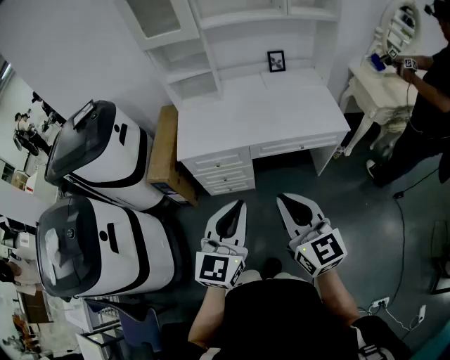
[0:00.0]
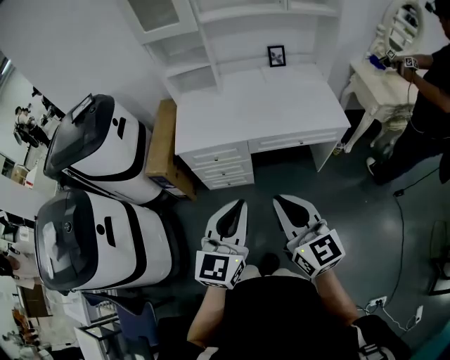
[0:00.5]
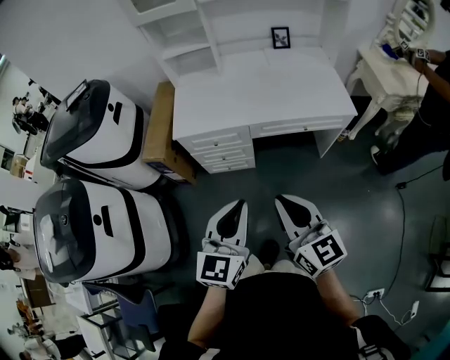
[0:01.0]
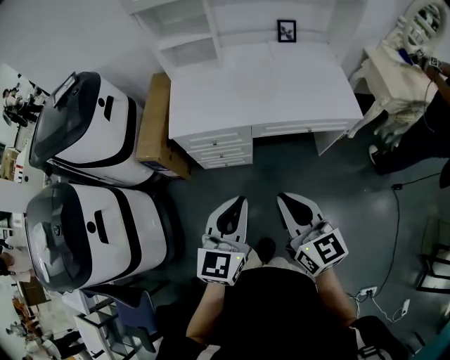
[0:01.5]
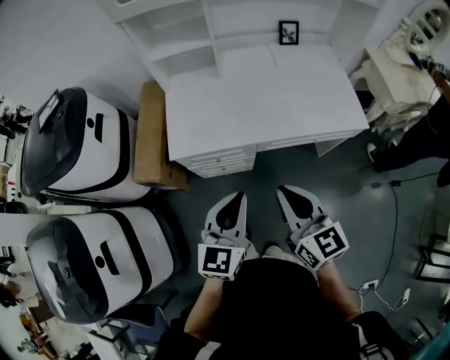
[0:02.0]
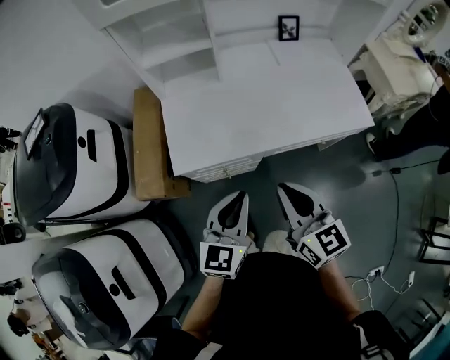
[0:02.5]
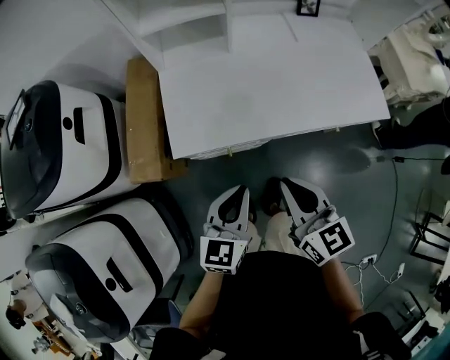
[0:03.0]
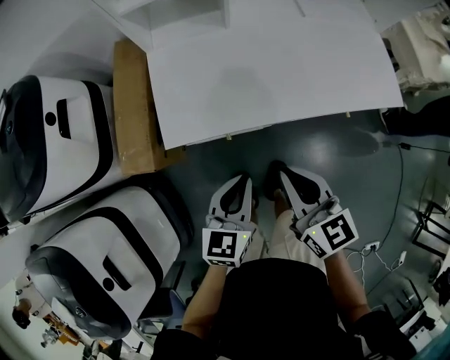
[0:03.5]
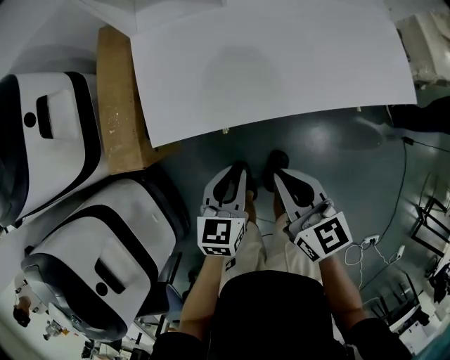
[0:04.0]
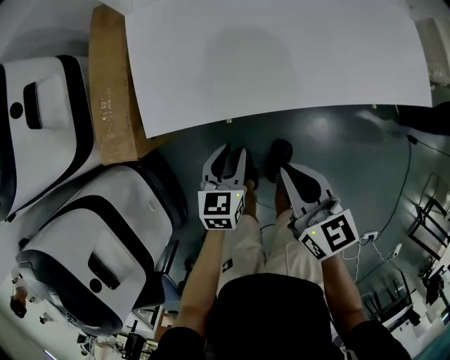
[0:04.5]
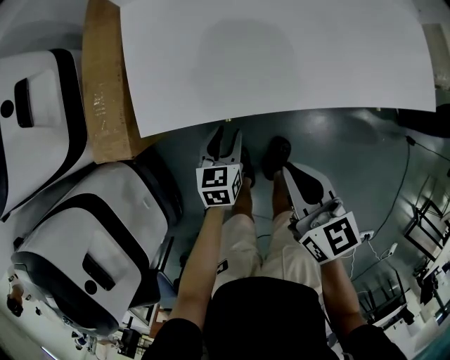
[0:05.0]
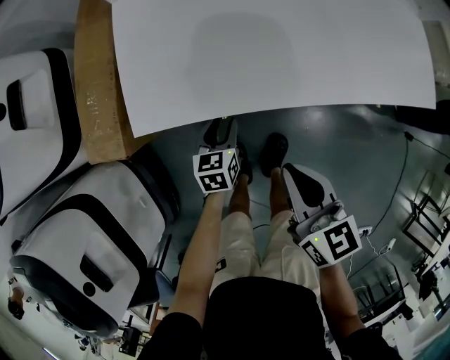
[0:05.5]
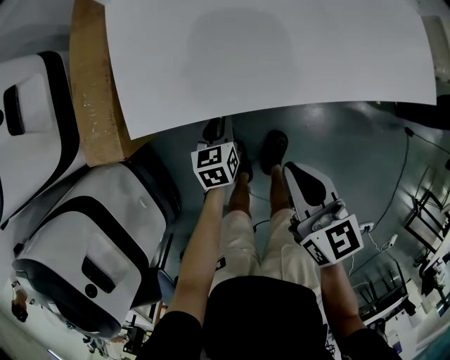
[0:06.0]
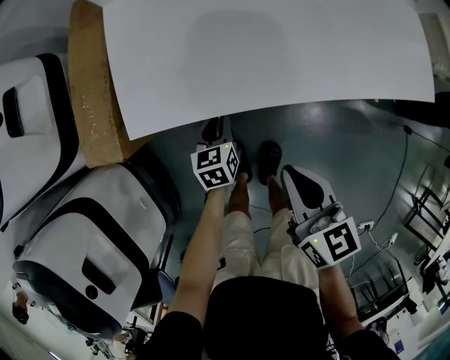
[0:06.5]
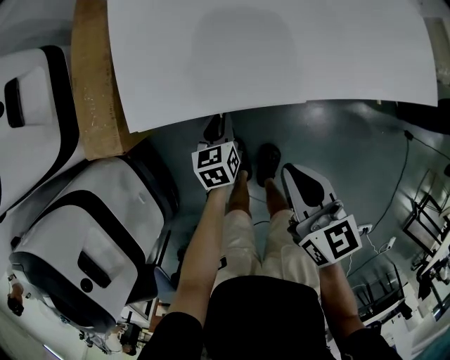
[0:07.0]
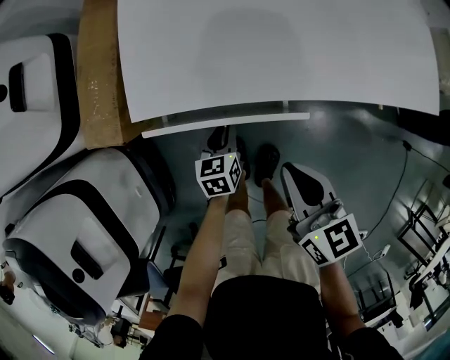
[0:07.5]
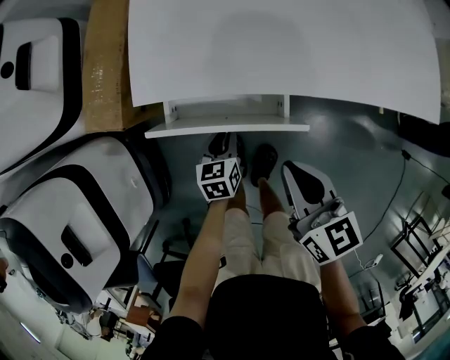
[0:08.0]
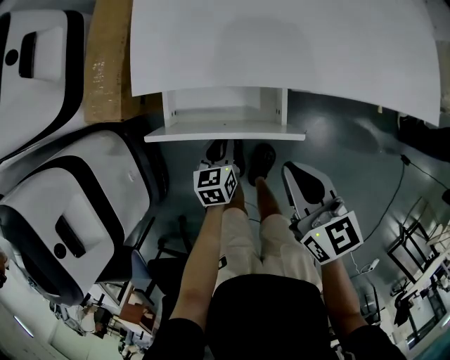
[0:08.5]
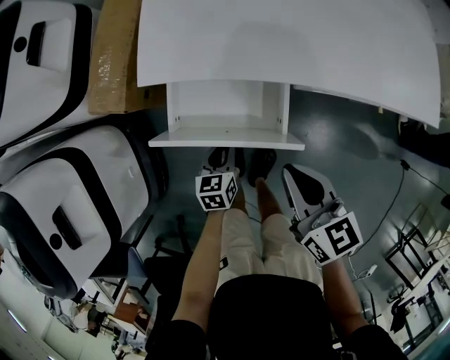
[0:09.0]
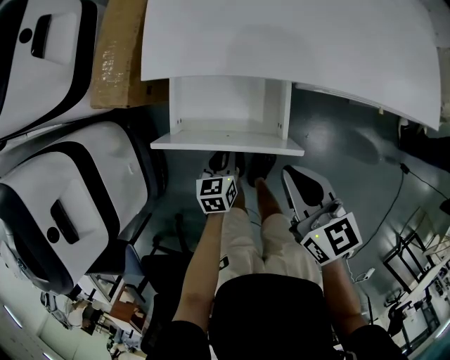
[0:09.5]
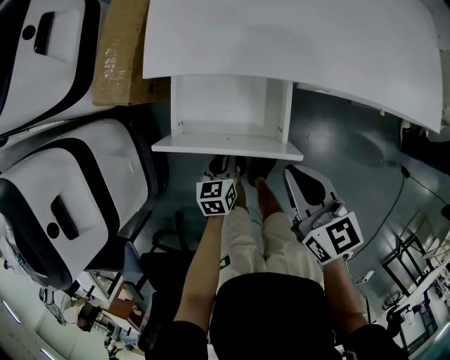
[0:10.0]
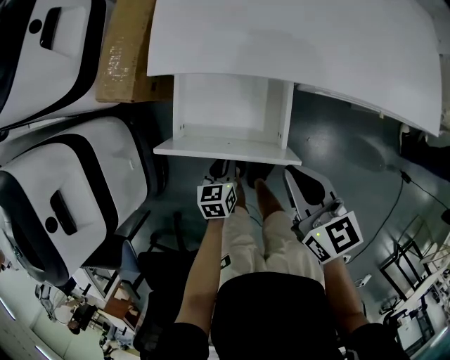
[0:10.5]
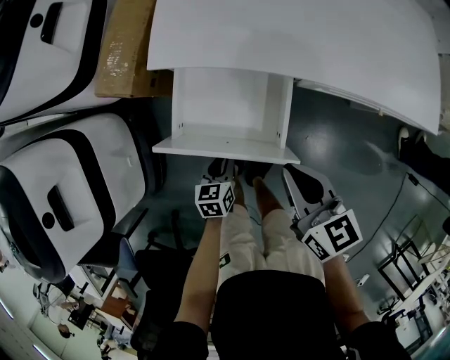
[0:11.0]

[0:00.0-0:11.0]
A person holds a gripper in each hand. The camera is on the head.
0.0 to 2.0 s: The right gripper shifts about 20 cm forward. The left gripper goes roughly 20 cm forward and downward.
2.0 to 3.5 s: Both grippers move downward, forward and to the left, some 20 cm.
3.5 to 5.5 s: The right gripper shifts some 15 cm downward. Meanwhile the left gripper heads downward, covering about 30 cm, turns by some 20 degrees, and opens.
5.5 to 7.5 s: The left gripper closes.
7.5 to 9.0 s: The right gripper travels backward by some 5 cm, while the left gripper moves backward, roughly 10 cm.
9.0 to 11.0 s: The left gripper travels backward by roughly 5 cm.

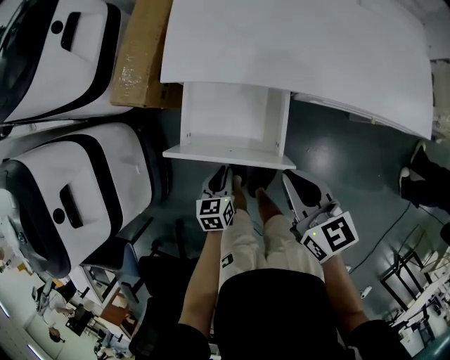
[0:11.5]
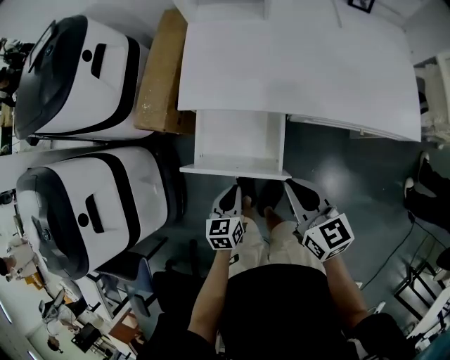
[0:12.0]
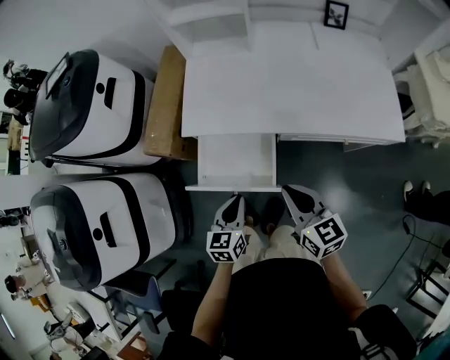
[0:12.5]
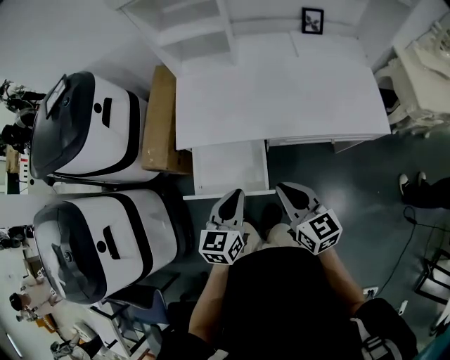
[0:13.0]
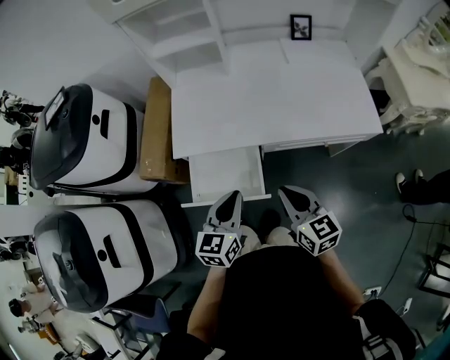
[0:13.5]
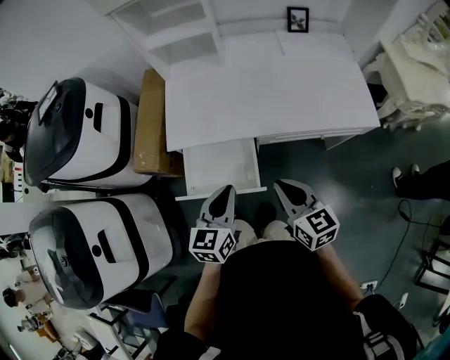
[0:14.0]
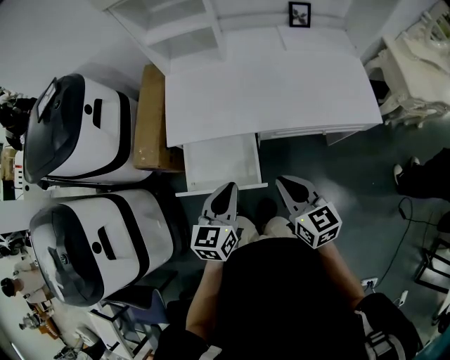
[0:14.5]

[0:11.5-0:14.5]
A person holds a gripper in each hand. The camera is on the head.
11.5 to 13.0 s: The right gripper travels upward and to the right by some 15 cm, while the left gripper goes about 30 cm upward, and turns by approximately 30 degrees.
13.0 to 14.5 s: There are only small adjustments of the grippers.

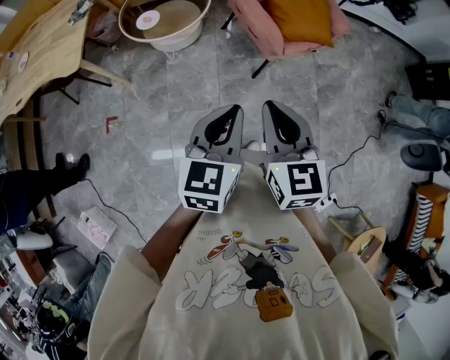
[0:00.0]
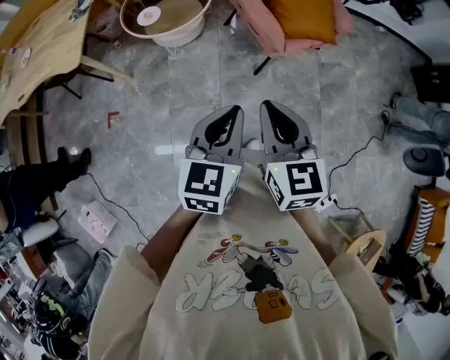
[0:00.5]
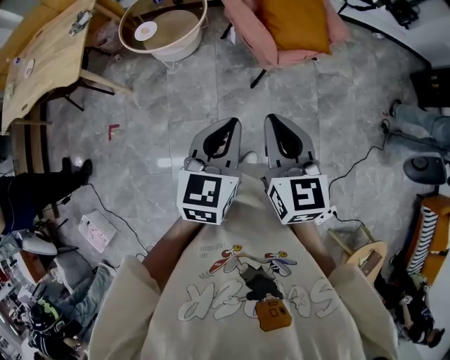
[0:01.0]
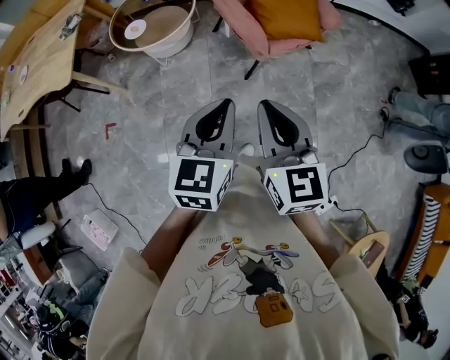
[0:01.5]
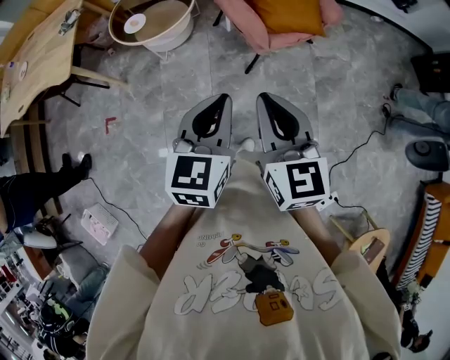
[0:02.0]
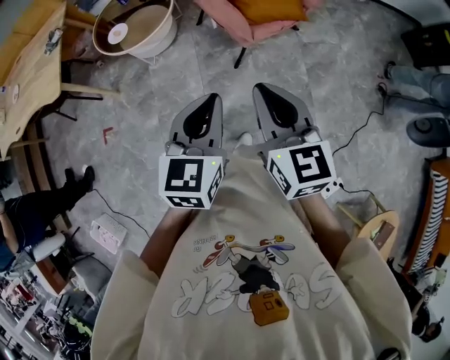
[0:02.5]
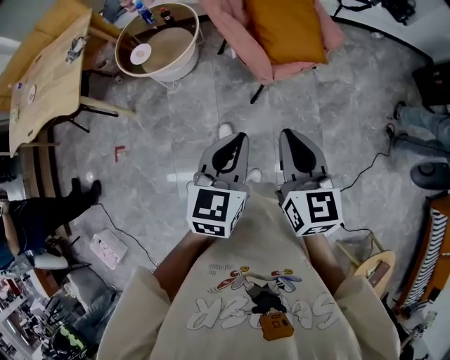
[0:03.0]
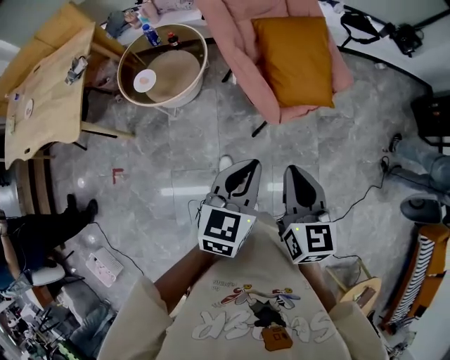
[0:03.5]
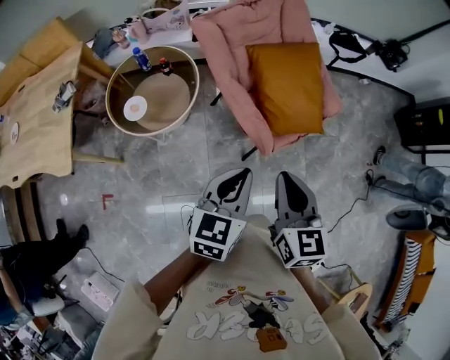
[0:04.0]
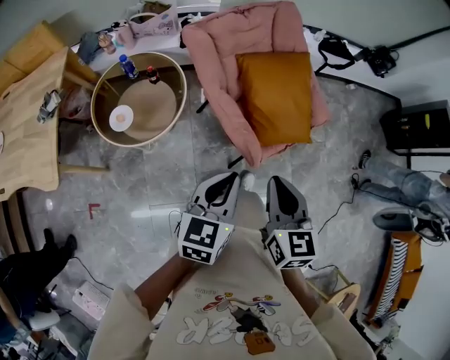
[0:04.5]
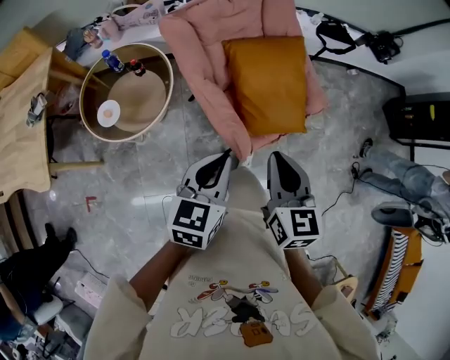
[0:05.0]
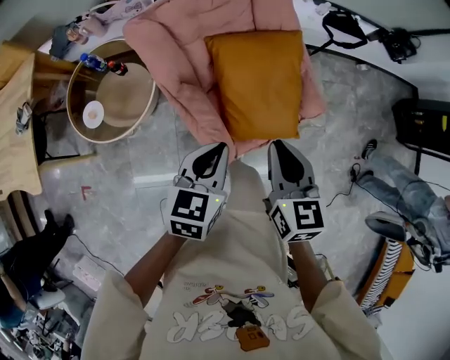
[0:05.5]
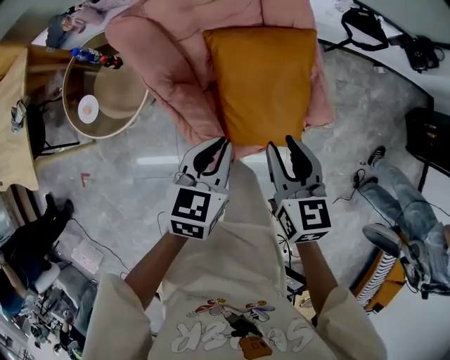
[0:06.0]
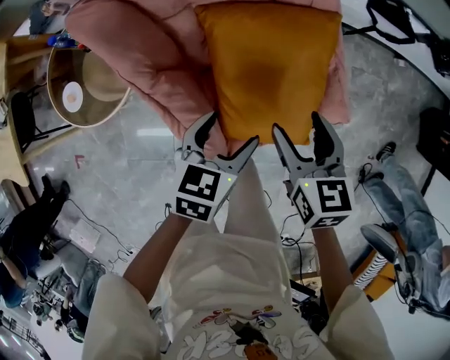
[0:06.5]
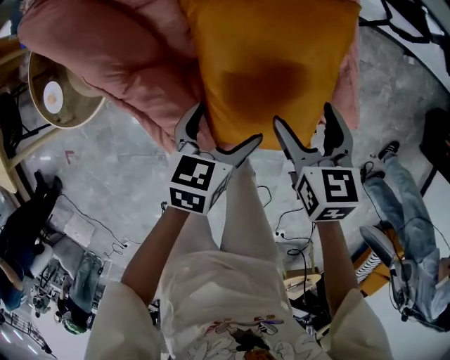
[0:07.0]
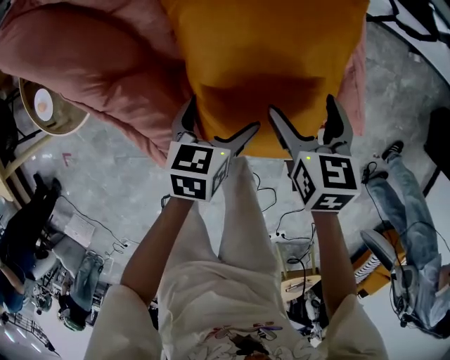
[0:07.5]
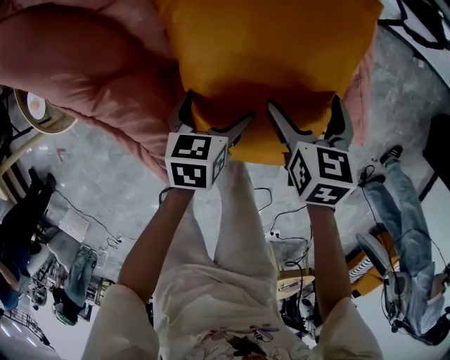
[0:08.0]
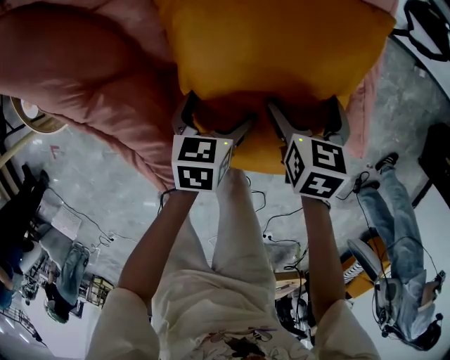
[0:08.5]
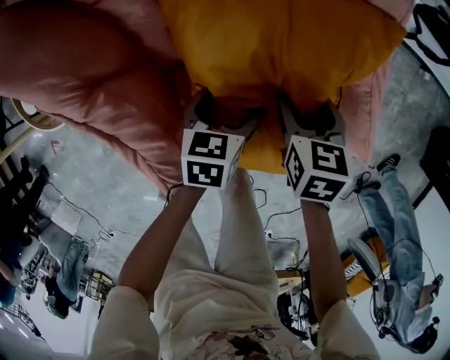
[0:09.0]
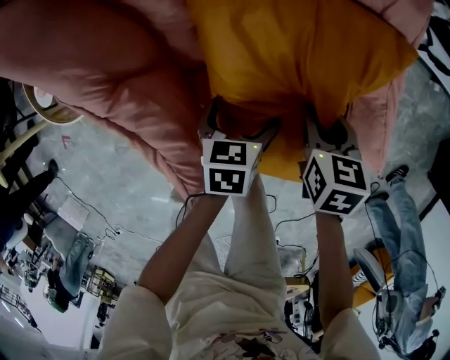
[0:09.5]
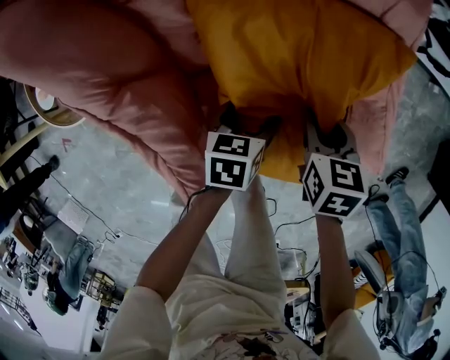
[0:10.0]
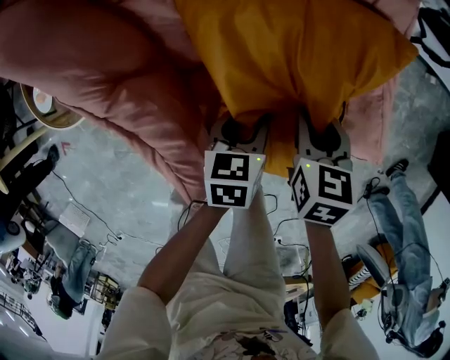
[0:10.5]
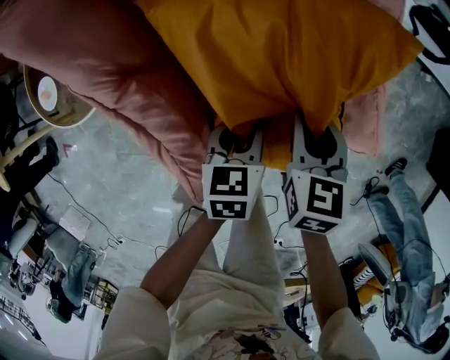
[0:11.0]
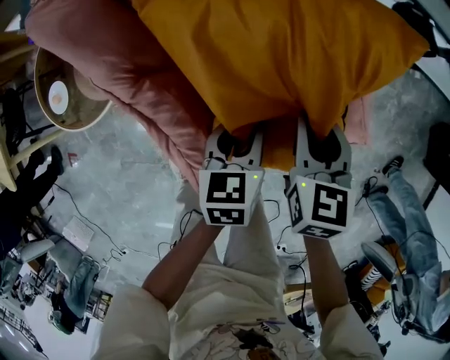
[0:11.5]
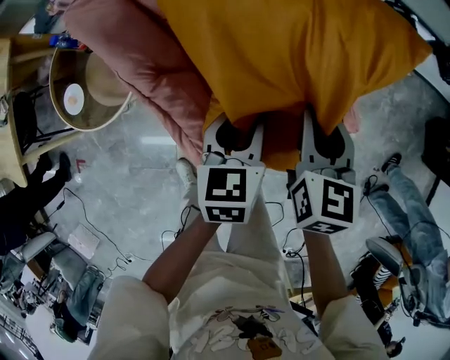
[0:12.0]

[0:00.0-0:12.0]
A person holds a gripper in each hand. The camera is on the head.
0.0 to 2.0 s: The grippers both shift to the right by roughly 10 cm.
2.0 to 4.0 s: The two grippers go roughly 30 cm forward.
4.0 to 6.0 s: Both grippers travel together forward and to the right, about 35 cm.
6.0 to 8.0 s: The right gripper goes some 35 cm downward and forward, and opens its fingers. Meanwhile the left gripper goes roughly 35 cm downward, rotates roughly 20 degrees, and opens up.
8.0 to 10.0 s: The left gripper moves about 5 cm; the right gripper moves about 5 cm, and closes.
10.0 to 12.0 s: Both grippers travel together upward, approximately 25 cm. The right gripper swivels approximately 30 degrees. Meanwhile the left gripper swivels roughly 30 degrees, and closes its fingers.

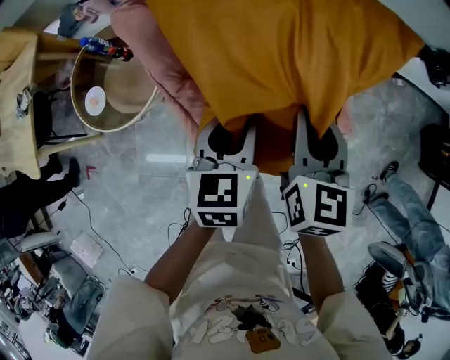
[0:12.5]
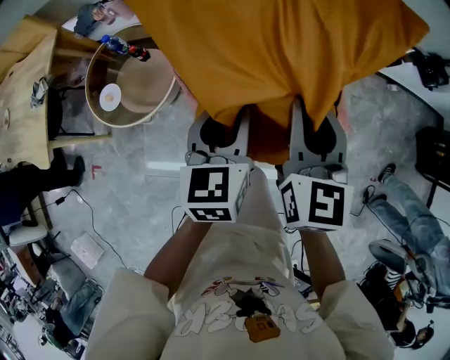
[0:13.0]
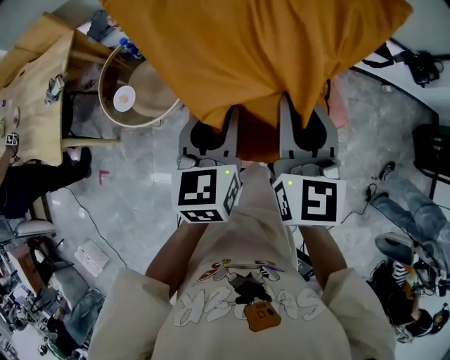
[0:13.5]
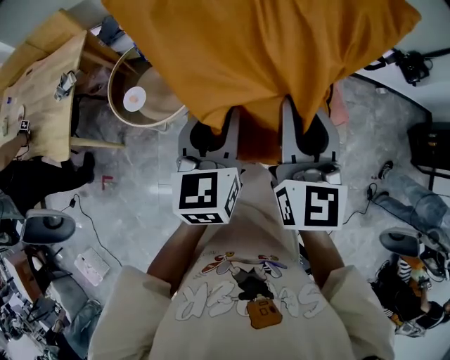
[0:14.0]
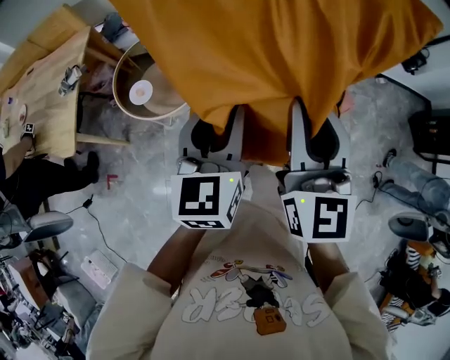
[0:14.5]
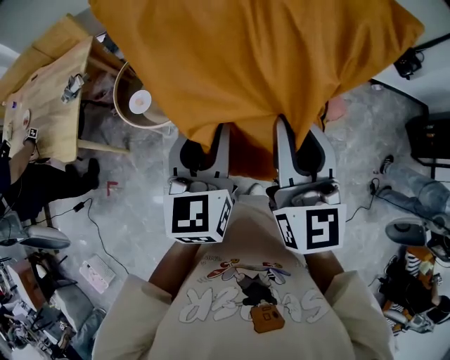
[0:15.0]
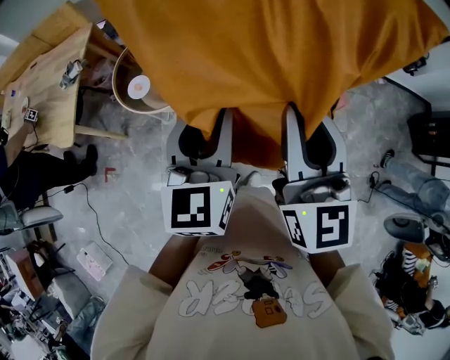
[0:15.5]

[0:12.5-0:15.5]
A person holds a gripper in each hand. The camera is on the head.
12.5 to 14.0 s: The right gripper moves upward, backward and to the left, approximately 35 cm, and swivels about 20 degrees. Meanwhile the left gripper moves upward, to the left and backward, some 35 cm, and changes its angle by some 20 degrees.
14.0 to 15.5 s: The right gripper moves backward, roughly 10 cm; the left gripper moves backward and upward, about 10 cm.
